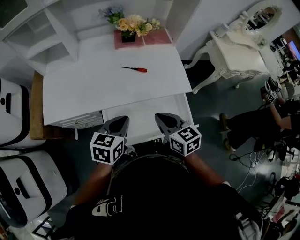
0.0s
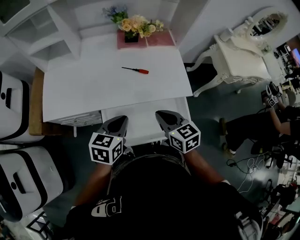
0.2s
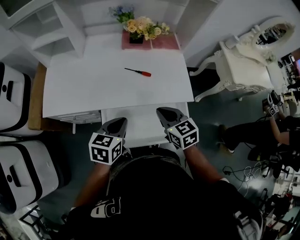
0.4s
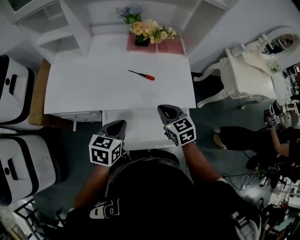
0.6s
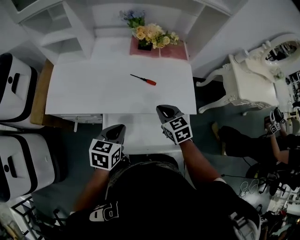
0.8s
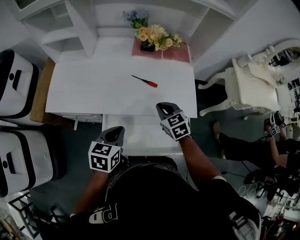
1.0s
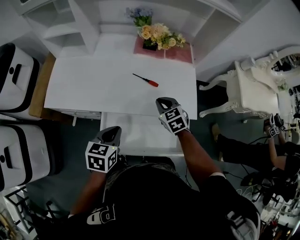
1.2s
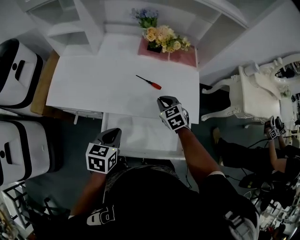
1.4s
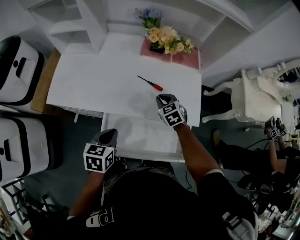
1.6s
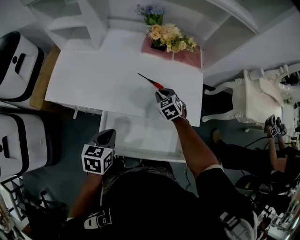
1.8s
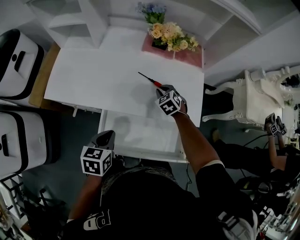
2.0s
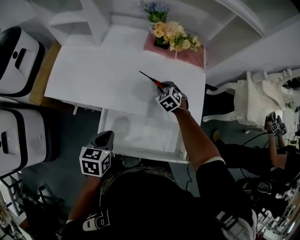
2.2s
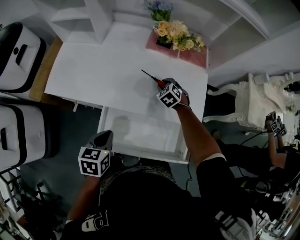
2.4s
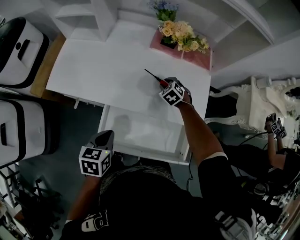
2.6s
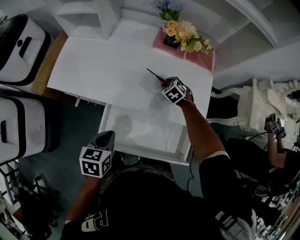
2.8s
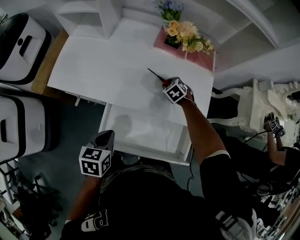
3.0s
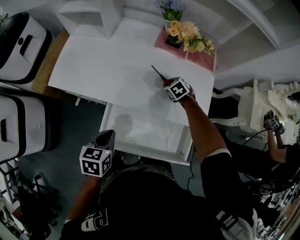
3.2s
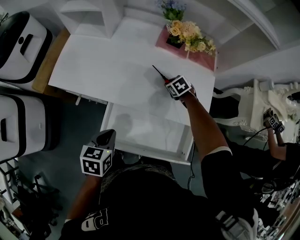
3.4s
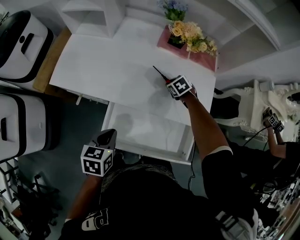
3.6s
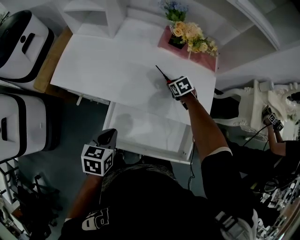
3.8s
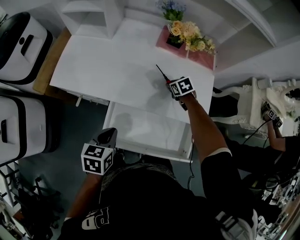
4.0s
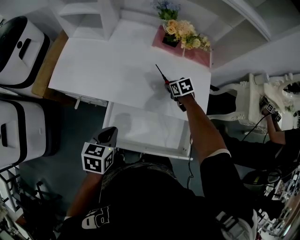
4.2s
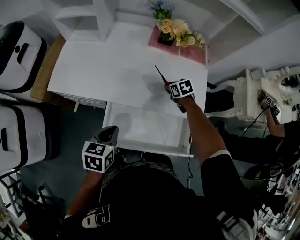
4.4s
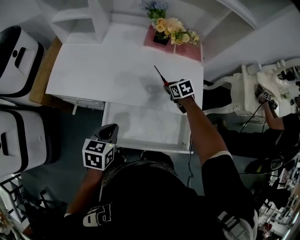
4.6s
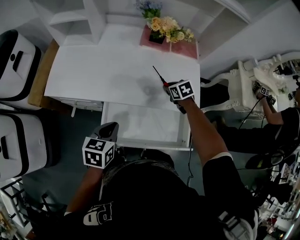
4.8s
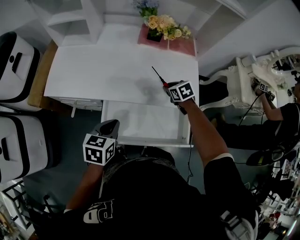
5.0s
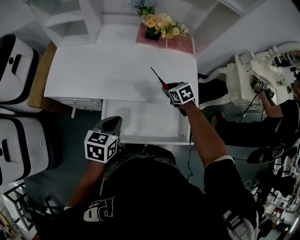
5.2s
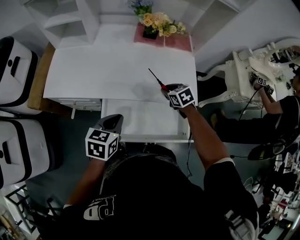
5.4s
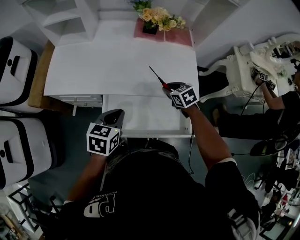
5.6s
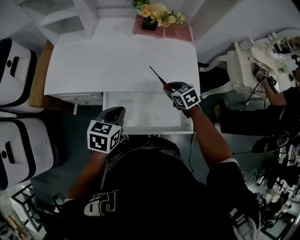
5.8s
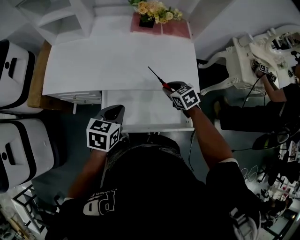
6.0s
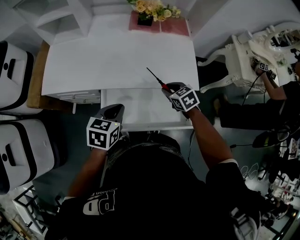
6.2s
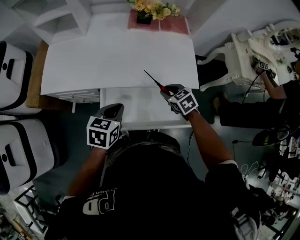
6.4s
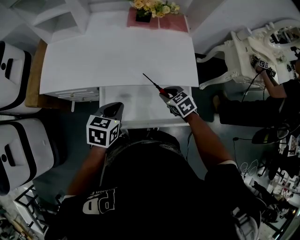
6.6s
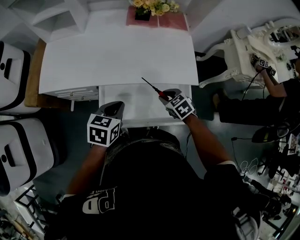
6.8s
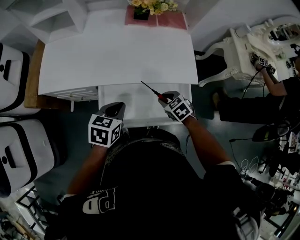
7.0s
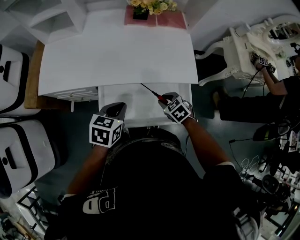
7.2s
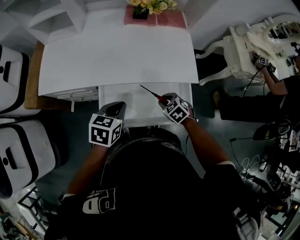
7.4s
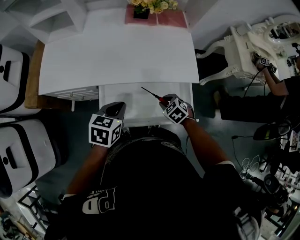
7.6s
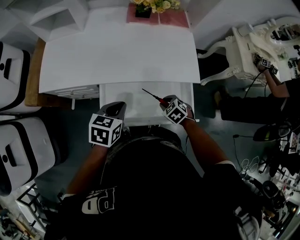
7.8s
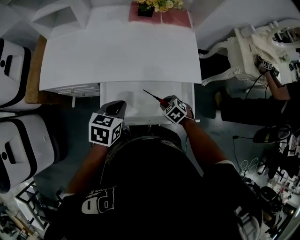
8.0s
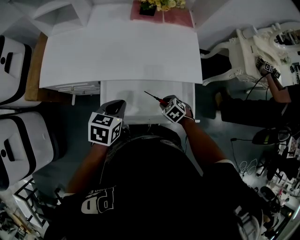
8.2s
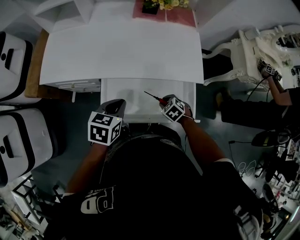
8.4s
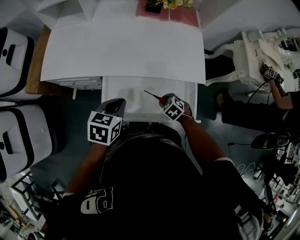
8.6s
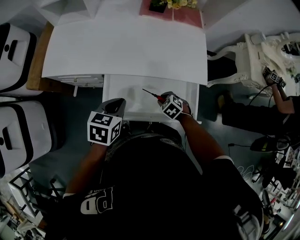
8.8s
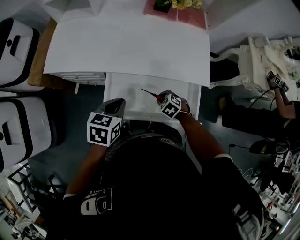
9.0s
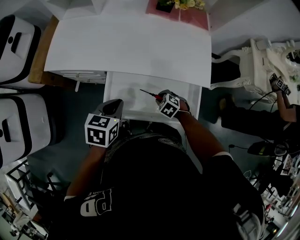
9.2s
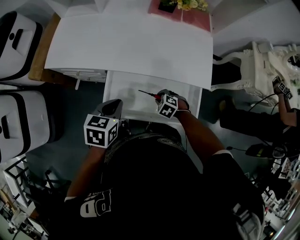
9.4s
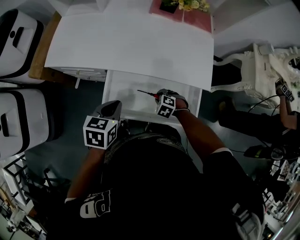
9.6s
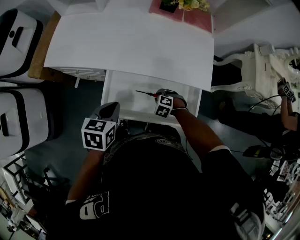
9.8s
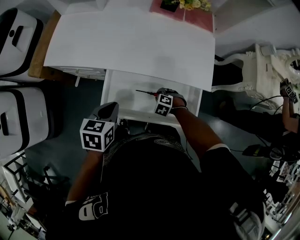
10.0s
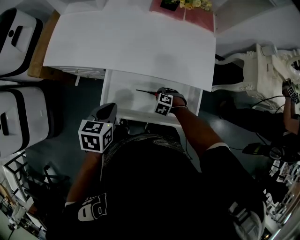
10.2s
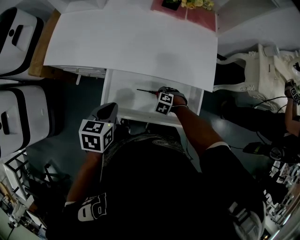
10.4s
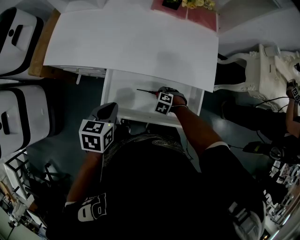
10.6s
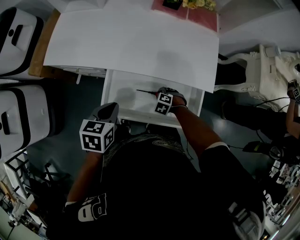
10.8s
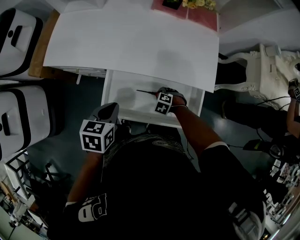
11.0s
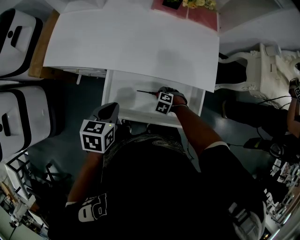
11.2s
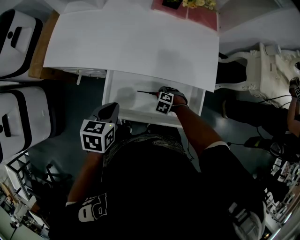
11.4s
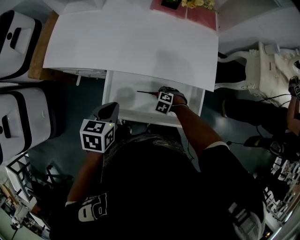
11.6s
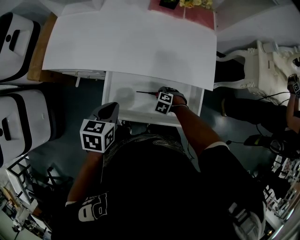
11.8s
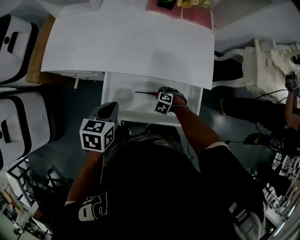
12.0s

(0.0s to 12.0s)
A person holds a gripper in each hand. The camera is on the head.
0.0s - 1.6s: The right gripper moves forward and downward, some 25 cm, and swivels roughly 40 degrees, while the left gripper ends up about 5 cm from where it was, and turns by about 30 degrees.
1.6s - 3.0s: The right gripper moves downward and forward, some 10 cm, changes its angle by roughly 20 degrees, and opens its fingers.
3.0s - 4.4s: The right gripper changes place by about 5 cm, and swivels approximately 30 degrees.
4.4s - 6.0s: The right gripper moves backward, some 15 cm.
6.0s - 7.6s: The right gripper shifts approximately 15 cm backward and downward.
7.6s - 9.0s: The right gripper goes approximately 5 cm downward.
9.0s - 10.4s: The right gripper travels downward by approximately 5 cm, and turns by roughly 20 degrees.
10.4s - 12.0s: The two grippers keep their place.

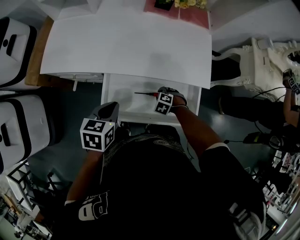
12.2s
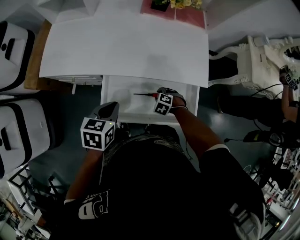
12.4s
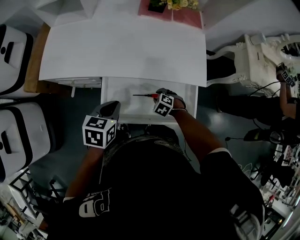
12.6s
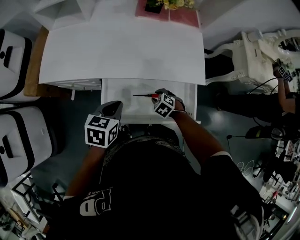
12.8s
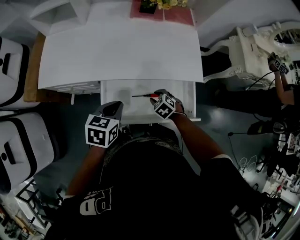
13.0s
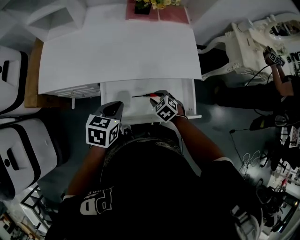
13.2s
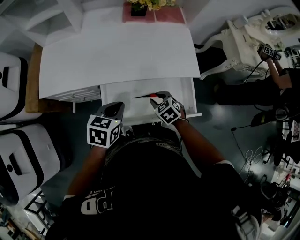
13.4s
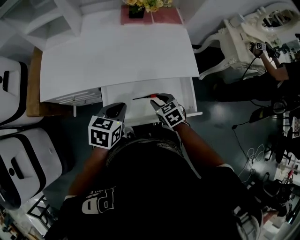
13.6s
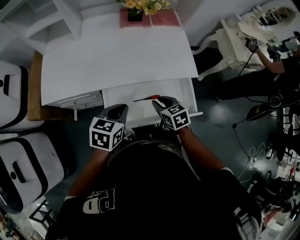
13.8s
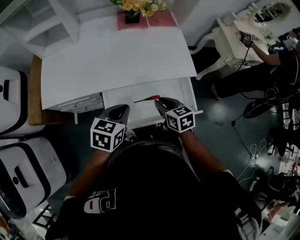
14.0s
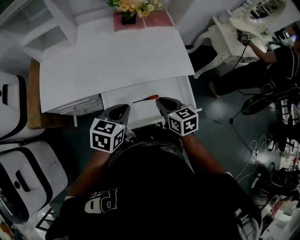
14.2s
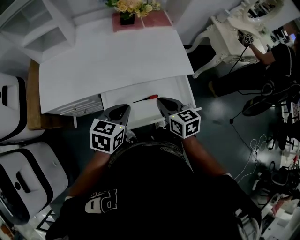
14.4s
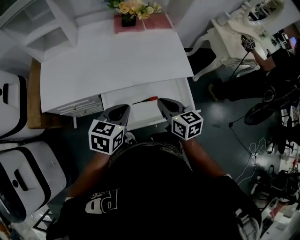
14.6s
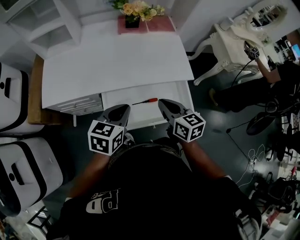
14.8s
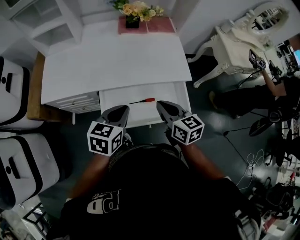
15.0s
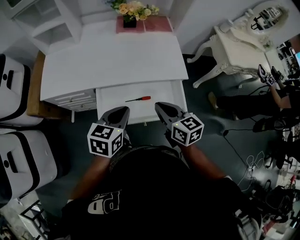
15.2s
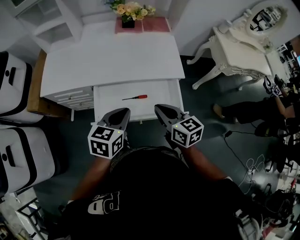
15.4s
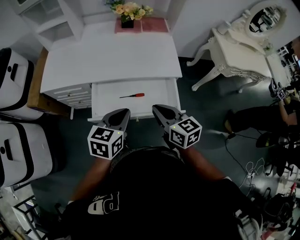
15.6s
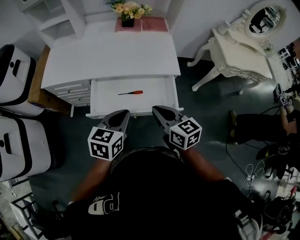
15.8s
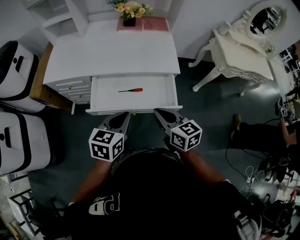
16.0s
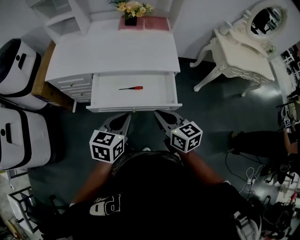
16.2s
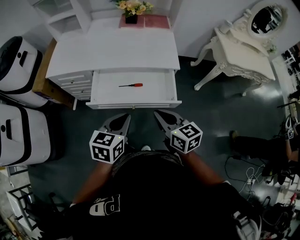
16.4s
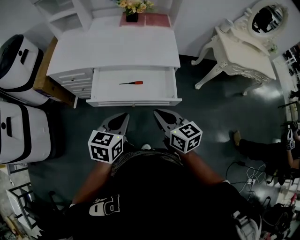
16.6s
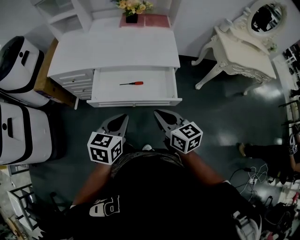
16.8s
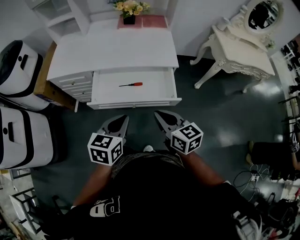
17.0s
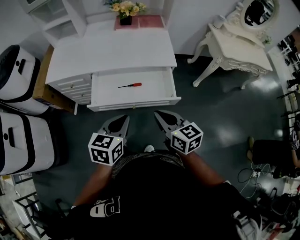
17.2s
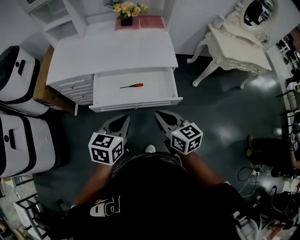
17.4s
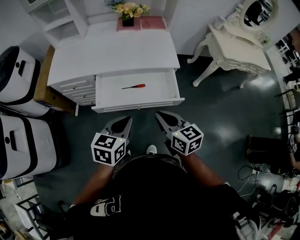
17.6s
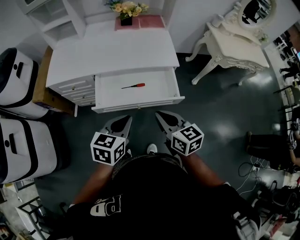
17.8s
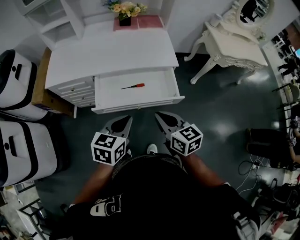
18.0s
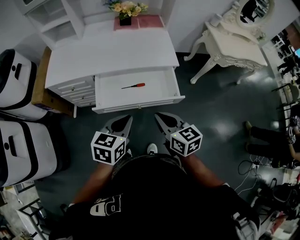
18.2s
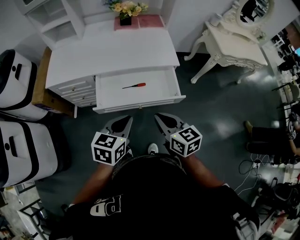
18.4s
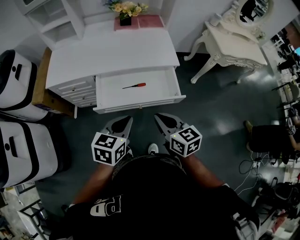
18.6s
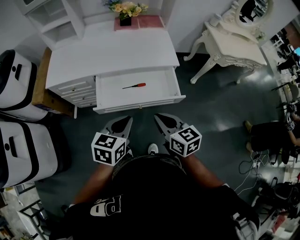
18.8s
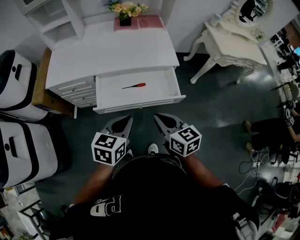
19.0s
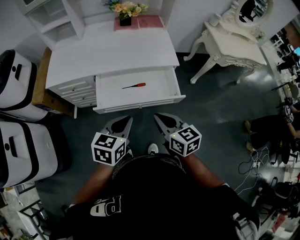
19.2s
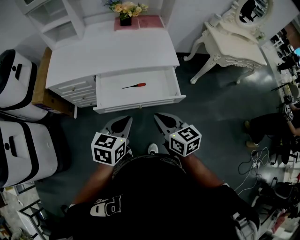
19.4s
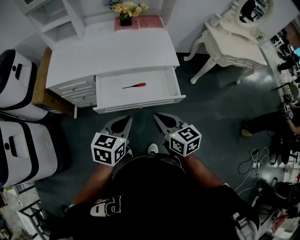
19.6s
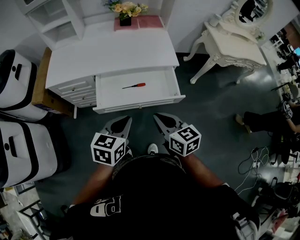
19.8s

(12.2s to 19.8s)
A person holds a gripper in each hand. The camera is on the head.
12.2s - 13.8s: The left gripper swivels roughly 20 degrees; the right gripper goes about 20 cm upward, and rotates around the line of its fingers by roughly 60 degrees, clockwise from behind.
13.8s - 15.2s: The right gripper goes approximately 15 cm upward and backward, changes its angle by roughly 20 degrees, and closes up, while the left gripper shifts roughly 10 cm to the right and upward.
15.2s - 16.8s: Both grippers travel together backward, approximately 20 cm.
16.8s - 18.2s: The right gripper travels to the left by roughly 5 cm.
18.2s - 19.8s: The grippers make only small movements.

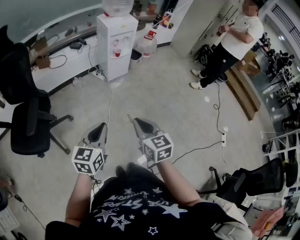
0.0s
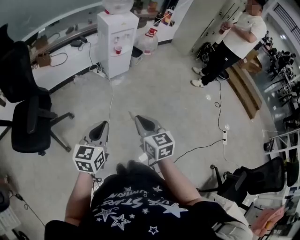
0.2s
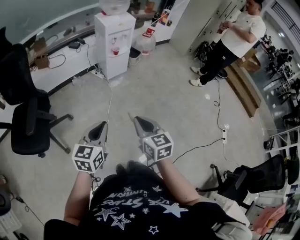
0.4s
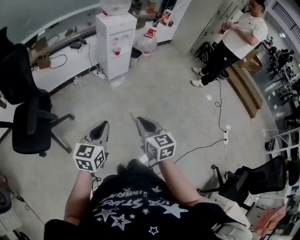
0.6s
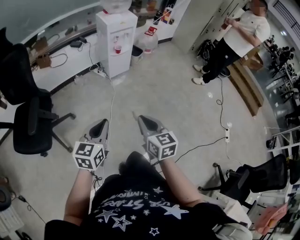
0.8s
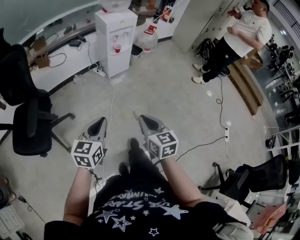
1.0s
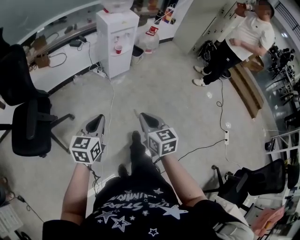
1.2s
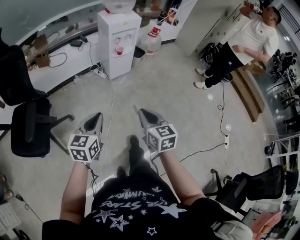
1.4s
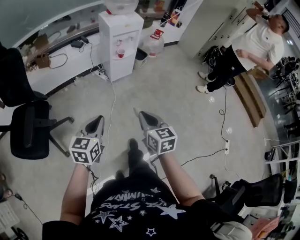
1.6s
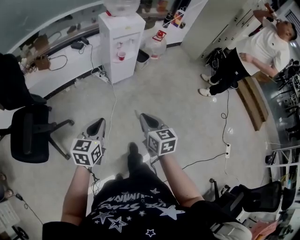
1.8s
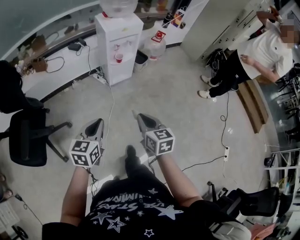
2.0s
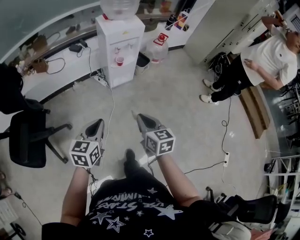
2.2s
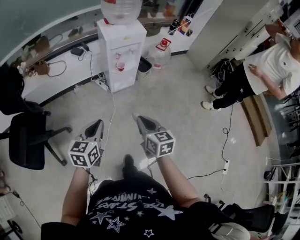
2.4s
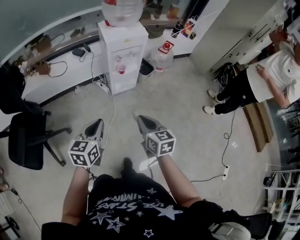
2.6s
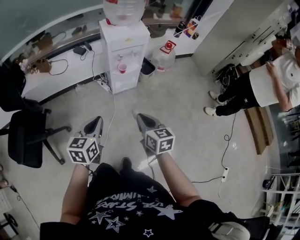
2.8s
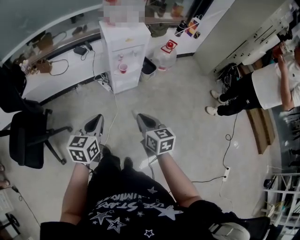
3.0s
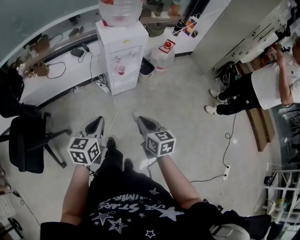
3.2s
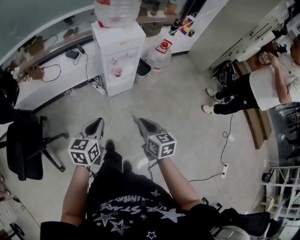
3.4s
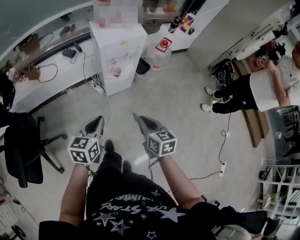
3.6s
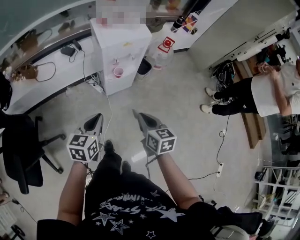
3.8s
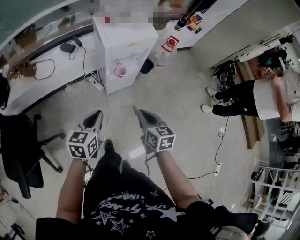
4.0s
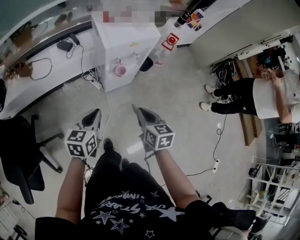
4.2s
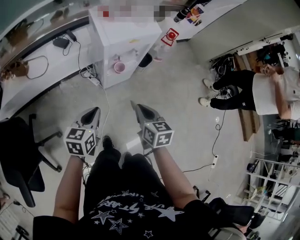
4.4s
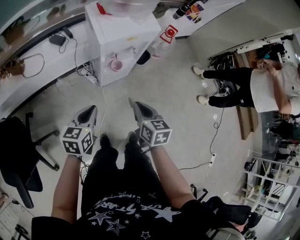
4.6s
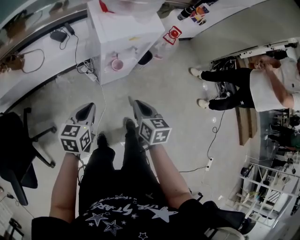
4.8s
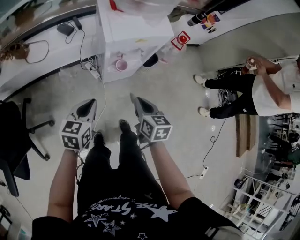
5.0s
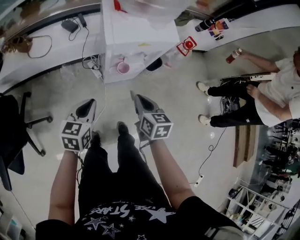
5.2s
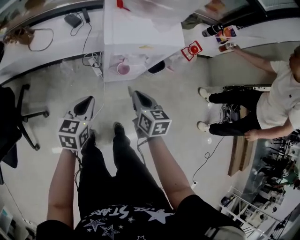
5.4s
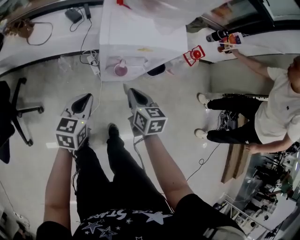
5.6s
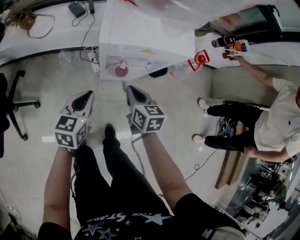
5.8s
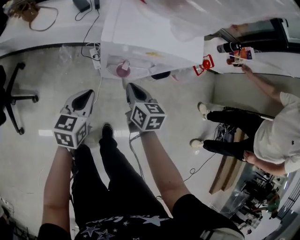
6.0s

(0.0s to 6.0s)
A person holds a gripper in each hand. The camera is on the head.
0.0s - 1.6s: Both grippers travel together forward, approximately 15 cm.
1.6s - 3.0s: The left gripper shifts roughly 25 cm forward and to the right; the right gripper moves forward, some 25 cm.
3.0s - 4.4s: The left gripper shifts about 25 cm forward and downward, while the right gripper travels forward by approximately 25 cm.
4.4s - 6.0s: The left gripper changes place by about 20 cm, and changes its angle by some 20 degrees; the right gripper moves about 30 cm, and swivels roughly 20 degrees.
